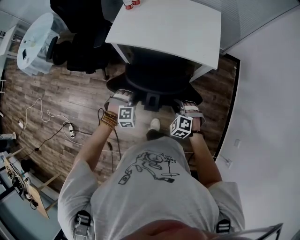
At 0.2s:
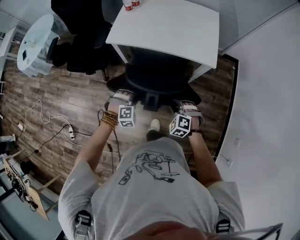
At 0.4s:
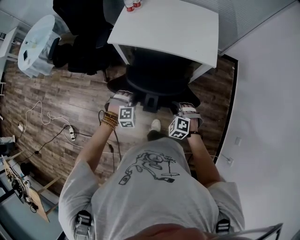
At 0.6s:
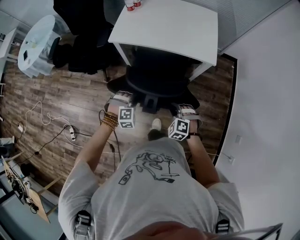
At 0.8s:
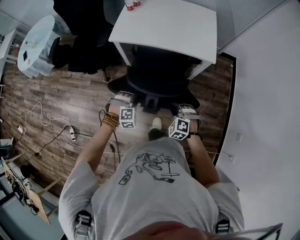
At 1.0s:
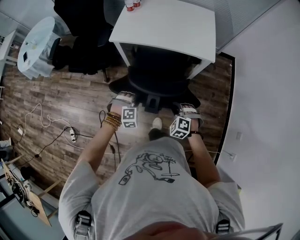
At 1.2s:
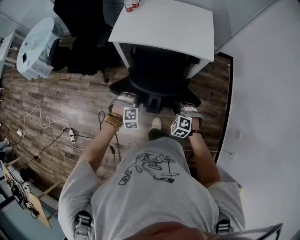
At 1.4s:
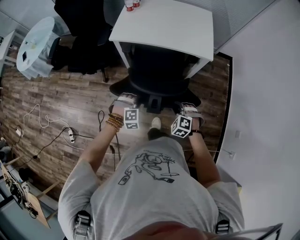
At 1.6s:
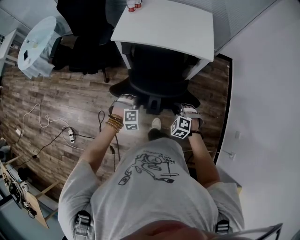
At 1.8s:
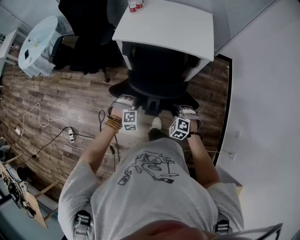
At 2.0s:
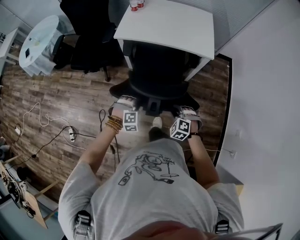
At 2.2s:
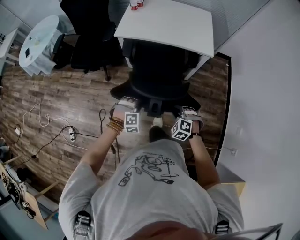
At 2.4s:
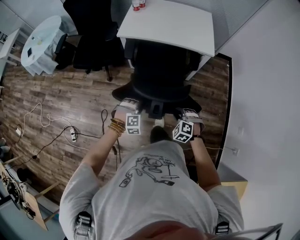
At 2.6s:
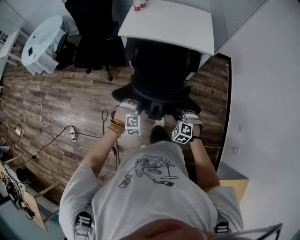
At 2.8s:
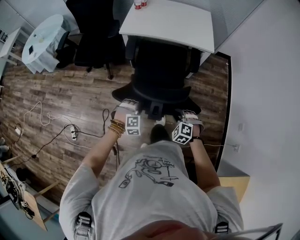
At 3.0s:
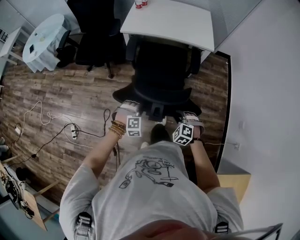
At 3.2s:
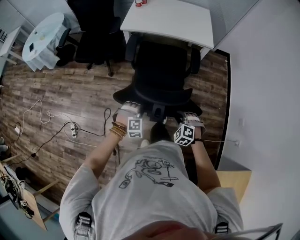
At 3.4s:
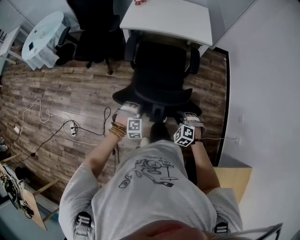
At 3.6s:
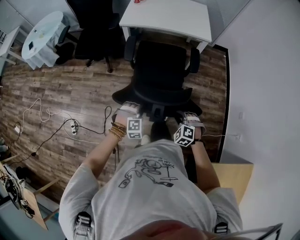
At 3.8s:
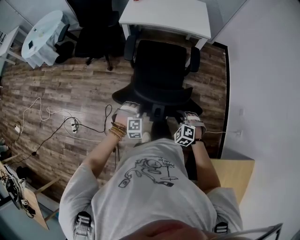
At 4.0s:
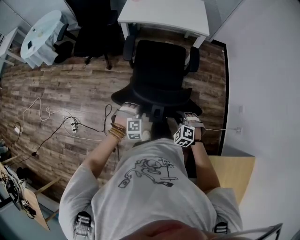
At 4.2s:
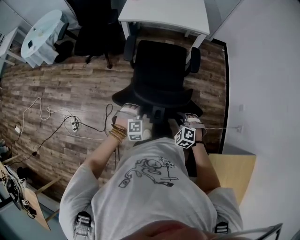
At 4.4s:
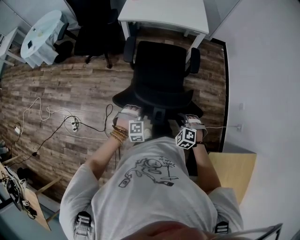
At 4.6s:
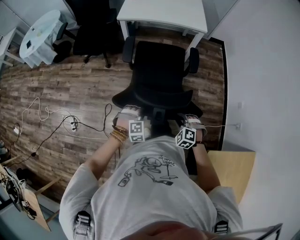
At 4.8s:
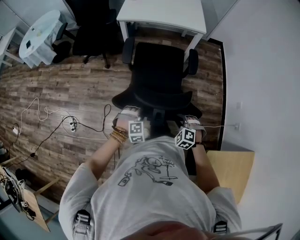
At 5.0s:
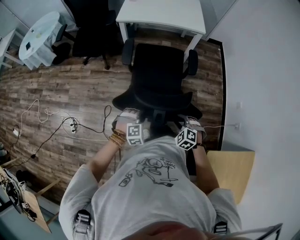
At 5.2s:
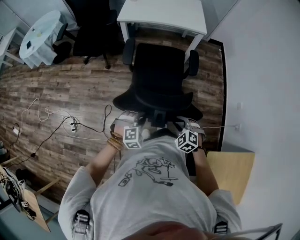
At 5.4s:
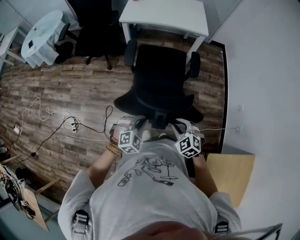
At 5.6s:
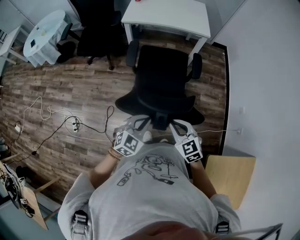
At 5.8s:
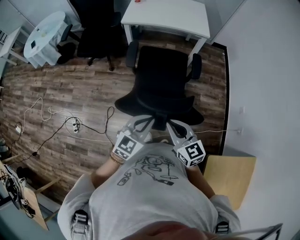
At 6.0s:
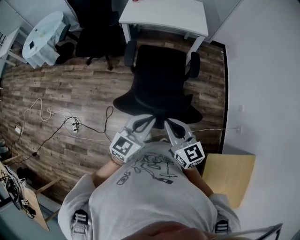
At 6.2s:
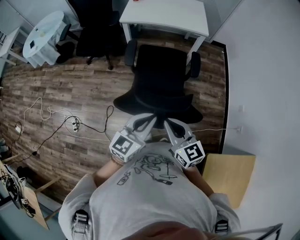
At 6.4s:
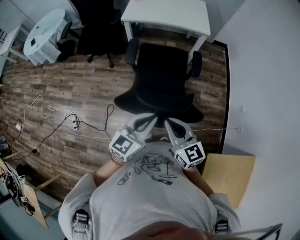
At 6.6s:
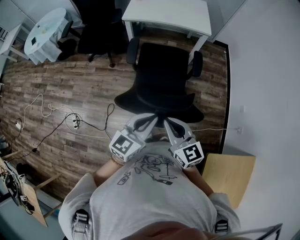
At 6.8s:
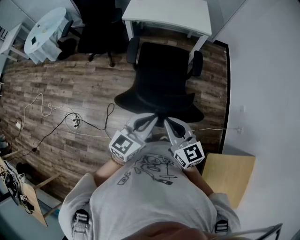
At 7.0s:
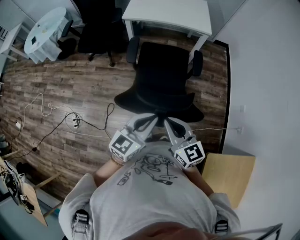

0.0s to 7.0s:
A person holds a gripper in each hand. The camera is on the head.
0.0s to 1.4s: Both grippers travel together backward, some 10 cm.
1.4s to 2.8s: Both grippers move backward, about 20 cm.
2.8s to 4.2s: Both grippers travel together backward, about 20 cm.
4.2s to 5.6s: The grippers both shift upward by approximately 15 cm. The left gripper swivels approximately 50 degrees, and closes its fingers, while the right gripper rotates some 40 degrees.
5.6s to 7.0s: Both grippers move upward, about 10 cm. The left gripper changes its angle by approximately 30 degrees. Meanwhile the right gripper turns by about 30 degrees.

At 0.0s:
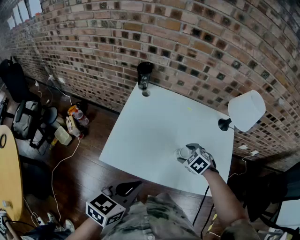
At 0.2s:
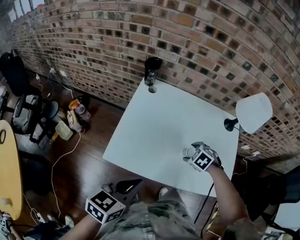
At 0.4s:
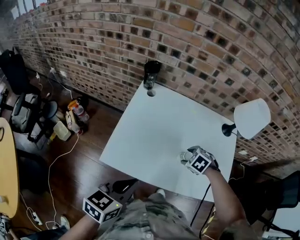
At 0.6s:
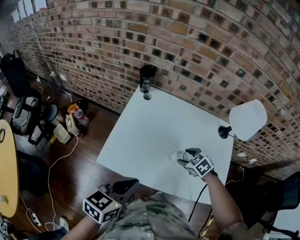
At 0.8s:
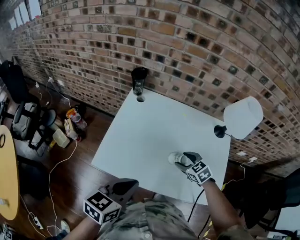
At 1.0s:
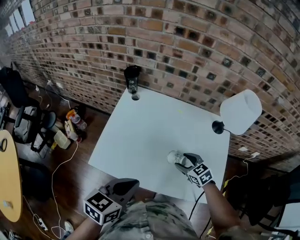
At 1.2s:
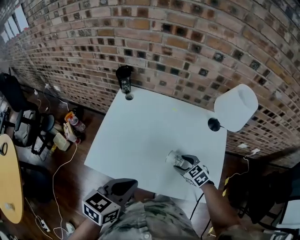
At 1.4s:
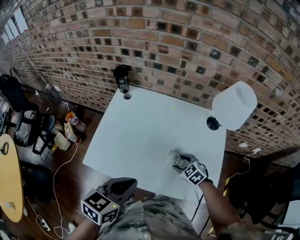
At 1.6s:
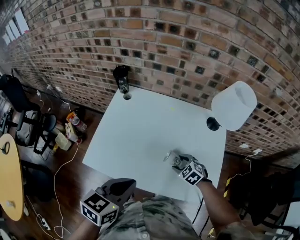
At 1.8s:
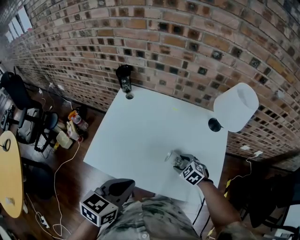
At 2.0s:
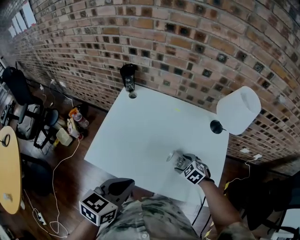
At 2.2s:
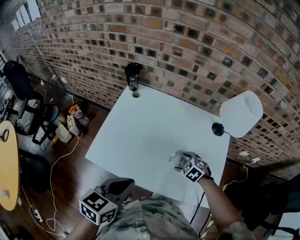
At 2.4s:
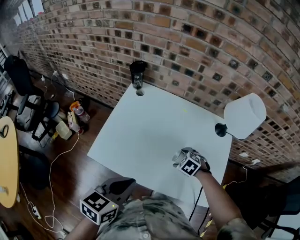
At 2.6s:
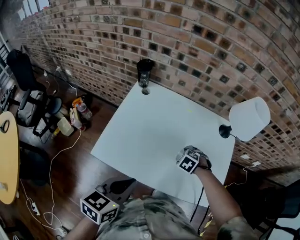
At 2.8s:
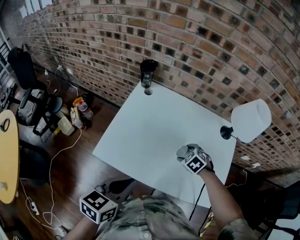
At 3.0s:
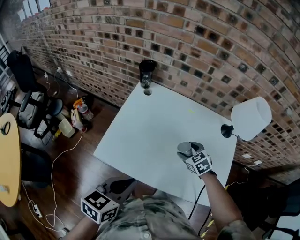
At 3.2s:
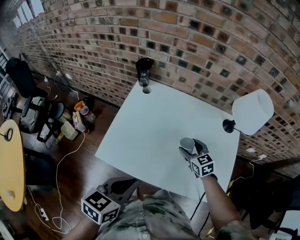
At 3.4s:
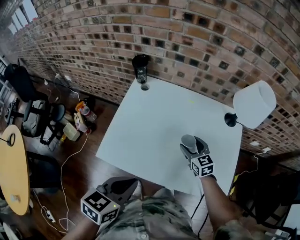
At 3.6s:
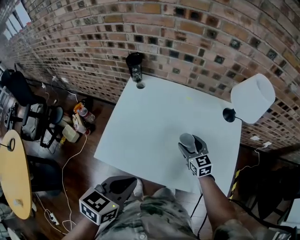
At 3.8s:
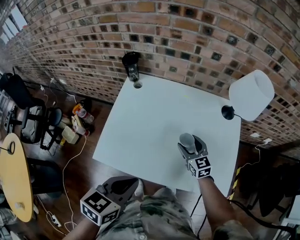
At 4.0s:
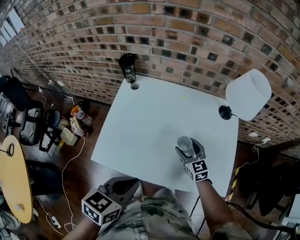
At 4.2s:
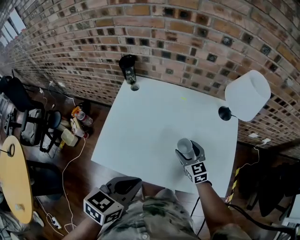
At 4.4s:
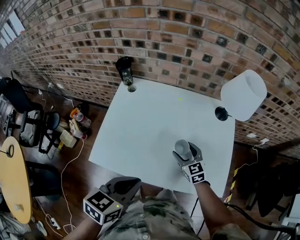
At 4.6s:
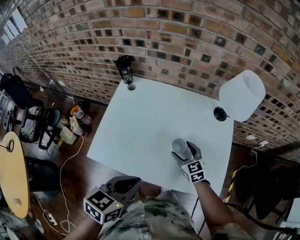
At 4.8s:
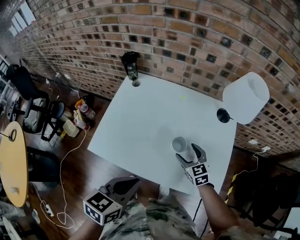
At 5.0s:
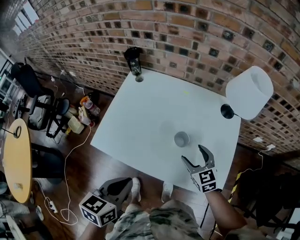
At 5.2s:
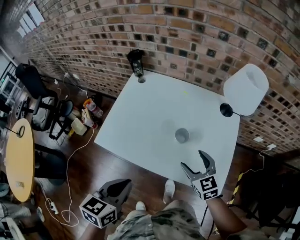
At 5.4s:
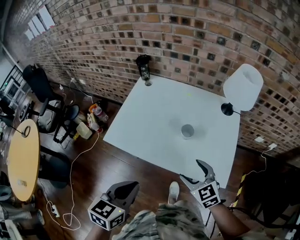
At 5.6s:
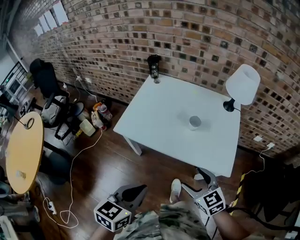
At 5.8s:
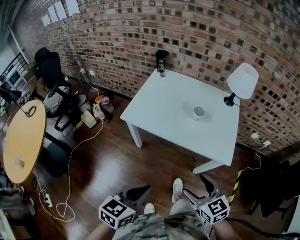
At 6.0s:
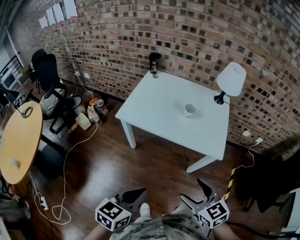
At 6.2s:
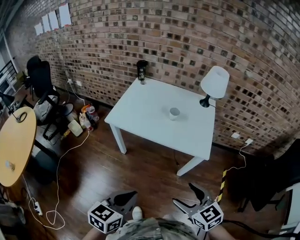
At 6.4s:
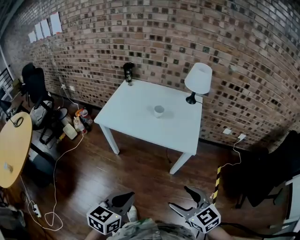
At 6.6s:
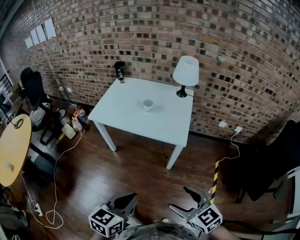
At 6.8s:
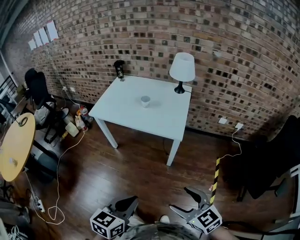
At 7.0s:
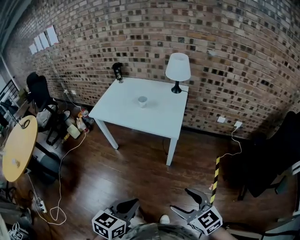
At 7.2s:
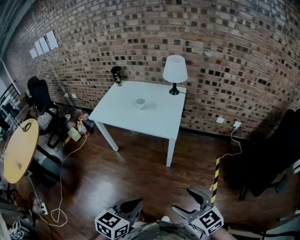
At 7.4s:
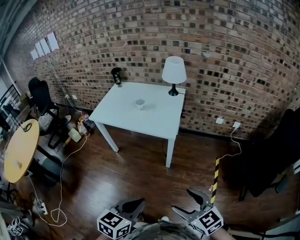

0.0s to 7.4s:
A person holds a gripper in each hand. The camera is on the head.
0.0s to 1.4s: The left gripper moves some 10 cm; the right gripper changes place by roughly 10 cm.
1.4s to 3.0s: The right gripper shifts by some 10 cm, while the left gripper shifts by some 10 cm.
3.0s to 4.4s: The left gripper travels to the right by approximately 5 cm; the right gripper moves approximately 5 cm, and rotates roughly 30 degrees.
4.4s to 6.0s: The right gripper travels backward and upward by some 50 cm, while the left gripper moves backward, approximately 40 cm.
6.0s to 7.4s: The grippers both shift to the right and backward by approximately 40 cm.

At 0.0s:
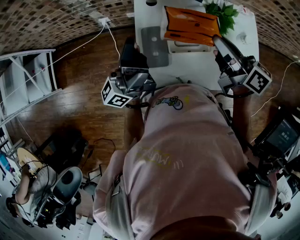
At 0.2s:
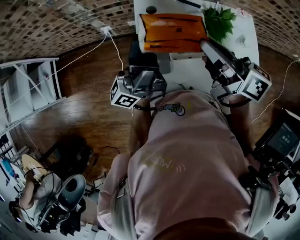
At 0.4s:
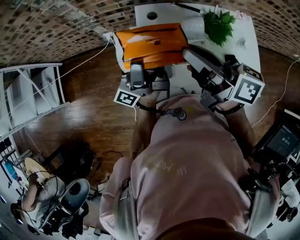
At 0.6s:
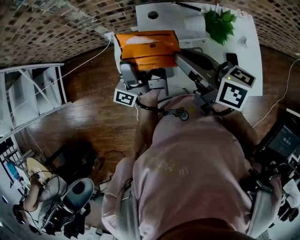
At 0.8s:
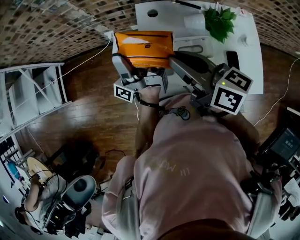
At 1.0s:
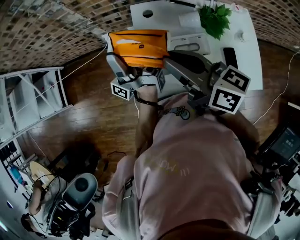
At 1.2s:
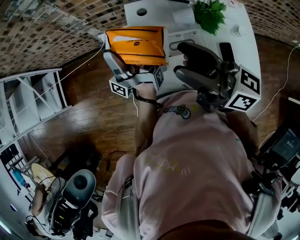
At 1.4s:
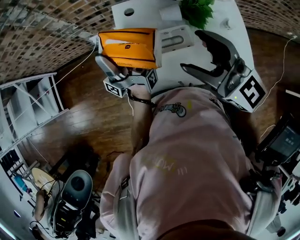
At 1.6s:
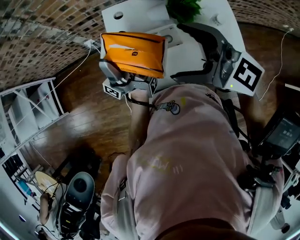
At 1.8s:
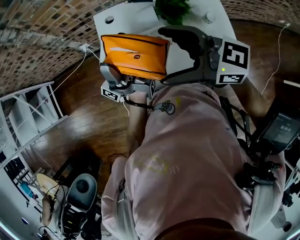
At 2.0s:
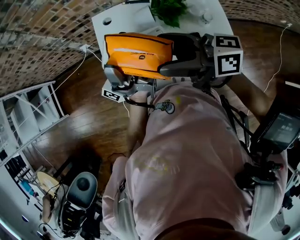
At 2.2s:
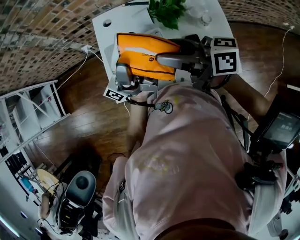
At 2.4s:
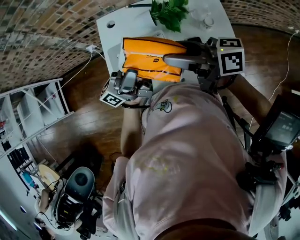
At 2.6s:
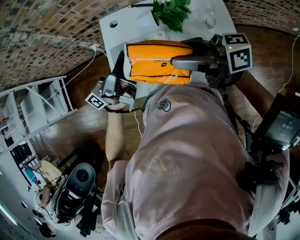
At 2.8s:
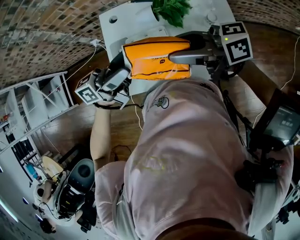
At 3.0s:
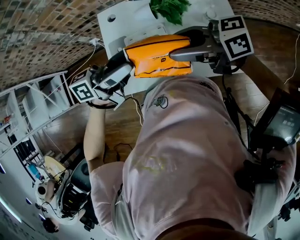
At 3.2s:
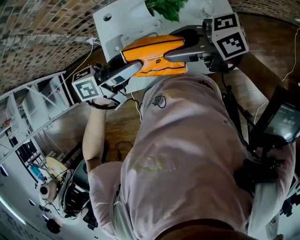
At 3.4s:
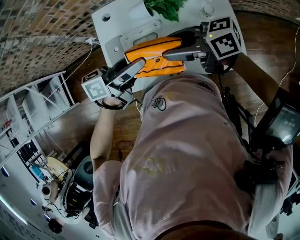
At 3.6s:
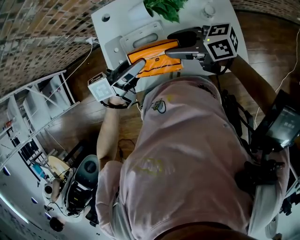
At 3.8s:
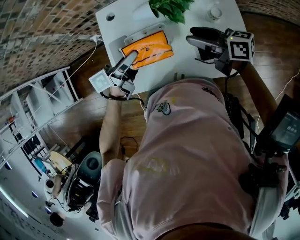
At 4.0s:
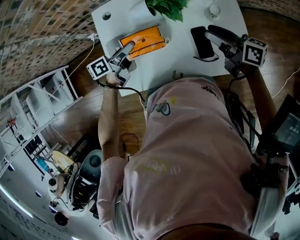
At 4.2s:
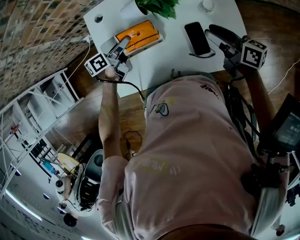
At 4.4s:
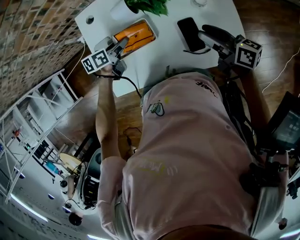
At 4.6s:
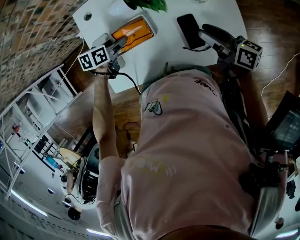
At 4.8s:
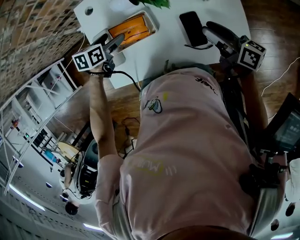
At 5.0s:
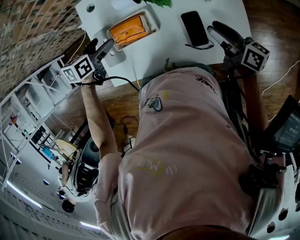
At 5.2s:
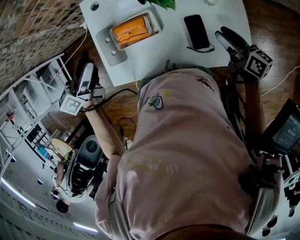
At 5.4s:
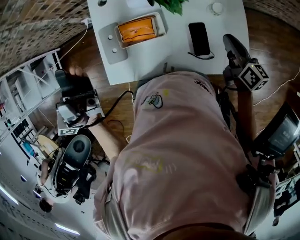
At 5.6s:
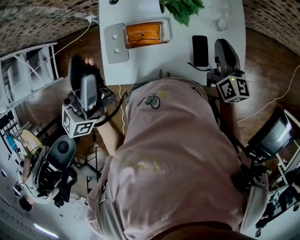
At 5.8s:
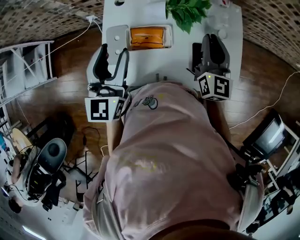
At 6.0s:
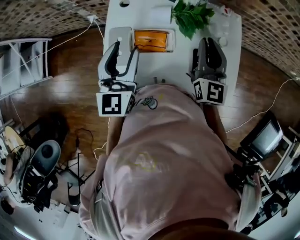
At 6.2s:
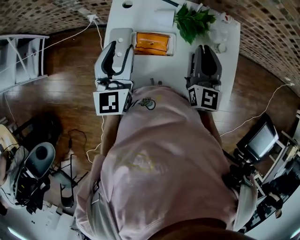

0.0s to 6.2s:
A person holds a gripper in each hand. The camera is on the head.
0.0s to 1.6s: The right gripper shifts by some 10 cm, rotates around the line of its fingers by about 40 degrees, counterclockwise from behind, and opens up. The left gripper moves approximately 10 cm, and turns by roughly 50 degrees.
1.6s to 3.2s: The right gripper changes place by about 10 cm, swivels approximately 40 degrees, and closes. Meanwhile the left gripper shifts by about 20 cm, and tips its fingers downward by some 60 degrees.
3.2s to 4.6s: The left gripper shifts roughly 30 cm downward, and points its fingers some 50 degrees further downward. Meanwhile the right gripper changes place by roughly 25 cm, and changes its angle by roughly 50 degrees.
4.6s to 6.2s: The left gripper is displaced upward by about 30 cm, and points its fingers approximately 50 degrees further upward. Meanwhile the right gripper heads to the left and upward, covering about 20 cm, and rotates around the line of its fingers by roughly 50 degrees, counterclockwise from behind.

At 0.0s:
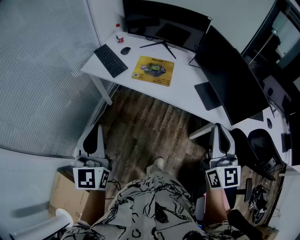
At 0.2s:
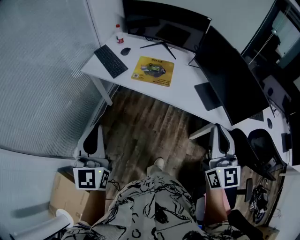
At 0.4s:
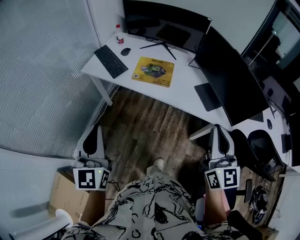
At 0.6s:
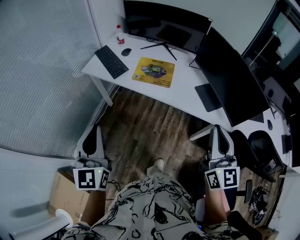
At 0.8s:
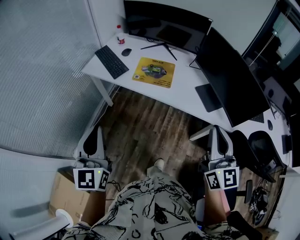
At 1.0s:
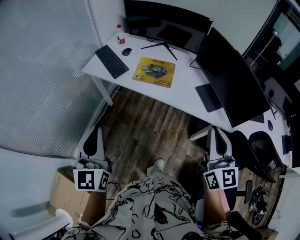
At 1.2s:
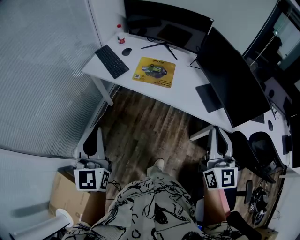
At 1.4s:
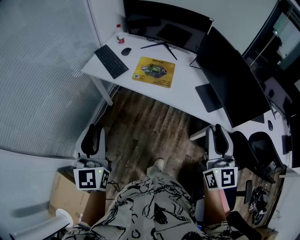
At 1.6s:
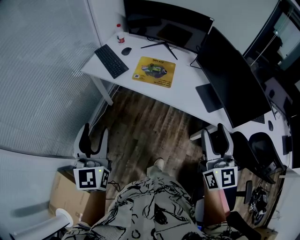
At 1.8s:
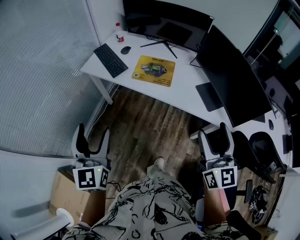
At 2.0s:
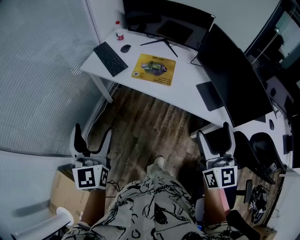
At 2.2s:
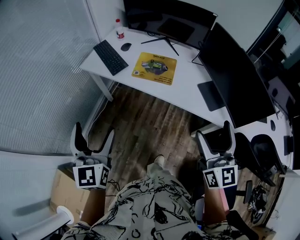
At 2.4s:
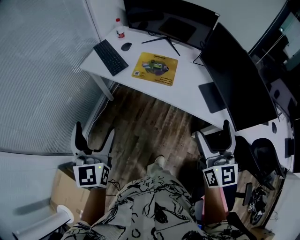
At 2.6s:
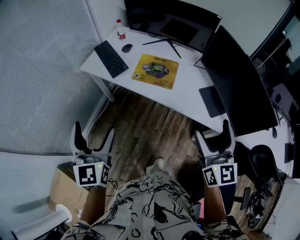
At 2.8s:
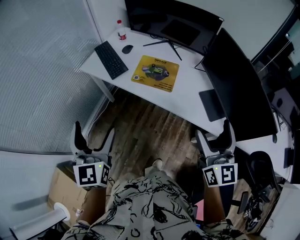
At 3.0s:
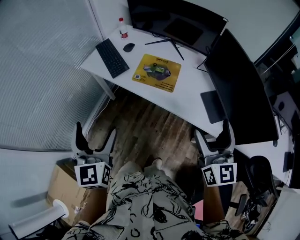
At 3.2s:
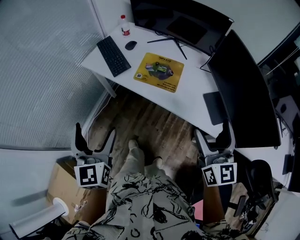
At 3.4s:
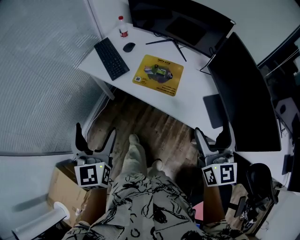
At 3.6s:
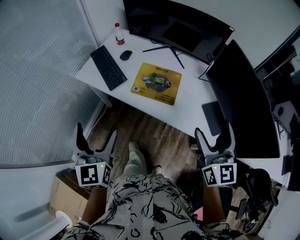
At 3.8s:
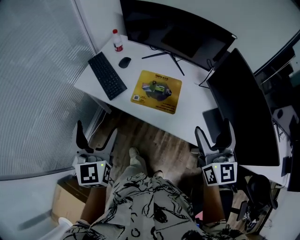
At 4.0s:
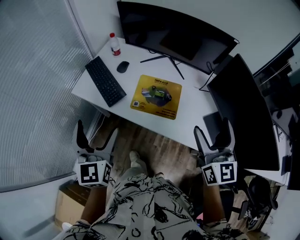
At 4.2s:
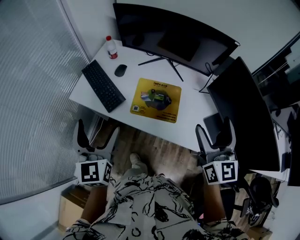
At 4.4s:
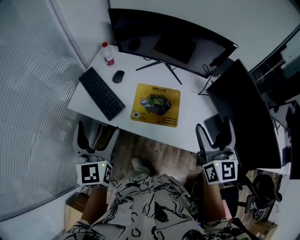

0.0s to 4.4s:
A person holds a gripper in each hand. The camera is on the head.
0.0s to 1.4s: There are only small adjustments of the grippers.
1.4s to 3.0s: Both grippers move forward, roughly 10 cm. The left gripper opens its fingers. Meanwhile the right gripper opens.
3.0s to 4.4s: Both grippers travel together forward, some 25 cm.
